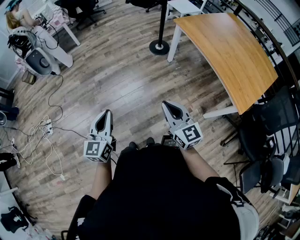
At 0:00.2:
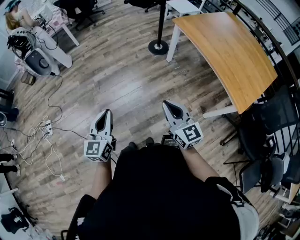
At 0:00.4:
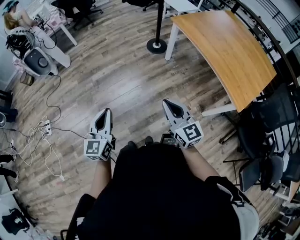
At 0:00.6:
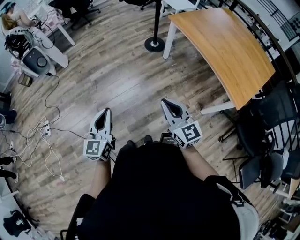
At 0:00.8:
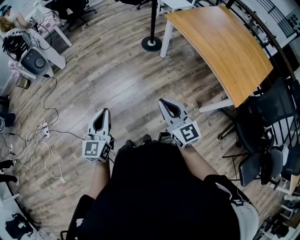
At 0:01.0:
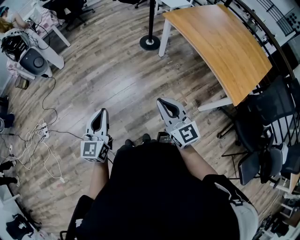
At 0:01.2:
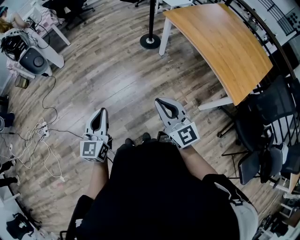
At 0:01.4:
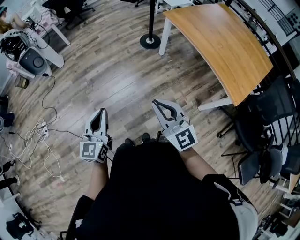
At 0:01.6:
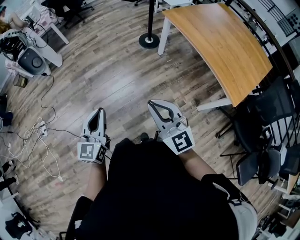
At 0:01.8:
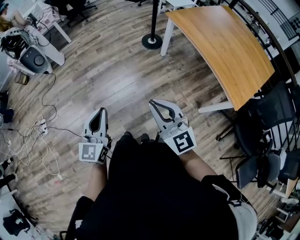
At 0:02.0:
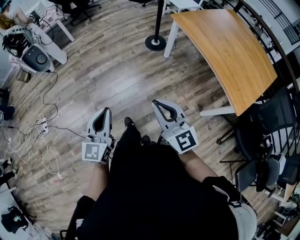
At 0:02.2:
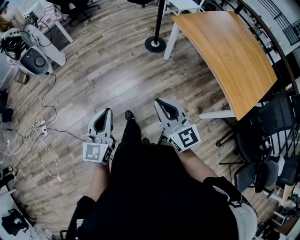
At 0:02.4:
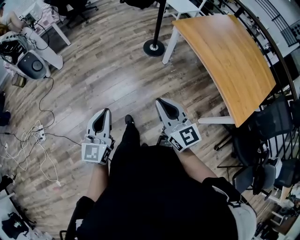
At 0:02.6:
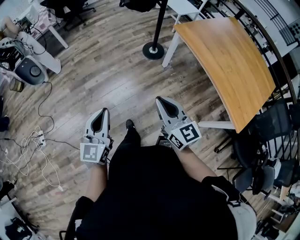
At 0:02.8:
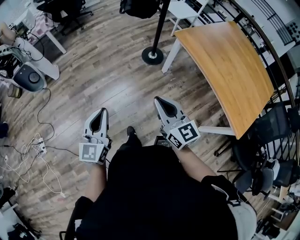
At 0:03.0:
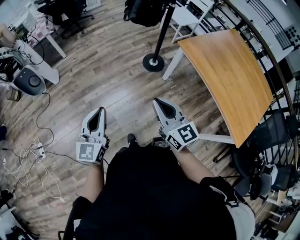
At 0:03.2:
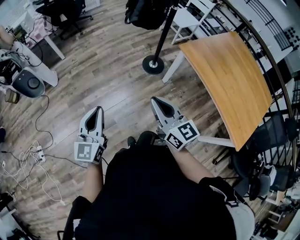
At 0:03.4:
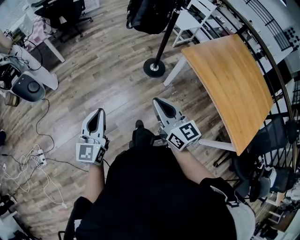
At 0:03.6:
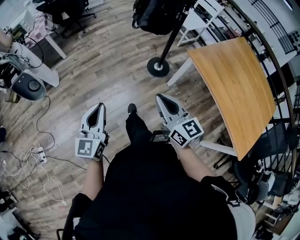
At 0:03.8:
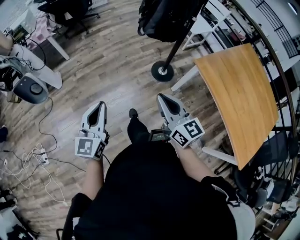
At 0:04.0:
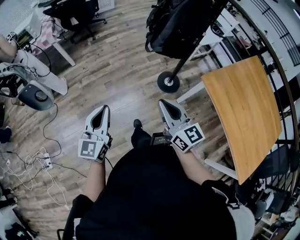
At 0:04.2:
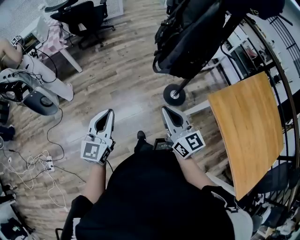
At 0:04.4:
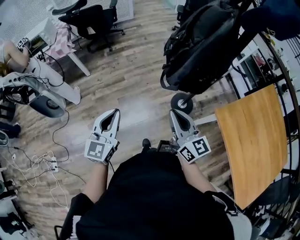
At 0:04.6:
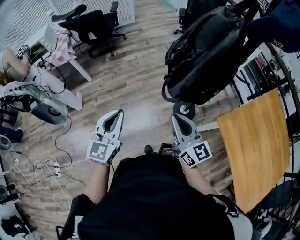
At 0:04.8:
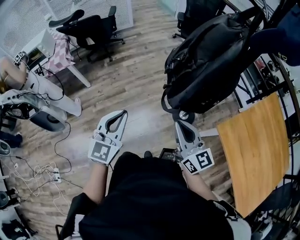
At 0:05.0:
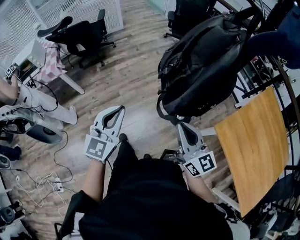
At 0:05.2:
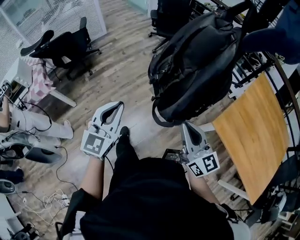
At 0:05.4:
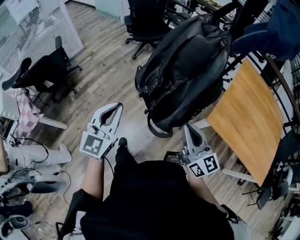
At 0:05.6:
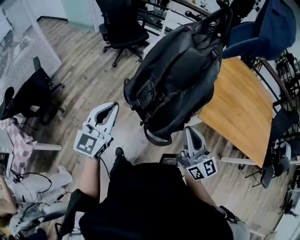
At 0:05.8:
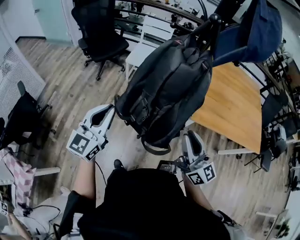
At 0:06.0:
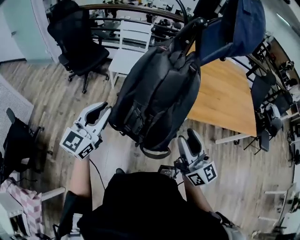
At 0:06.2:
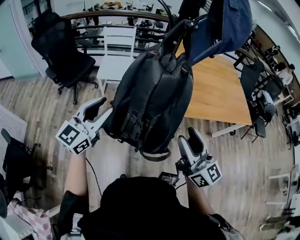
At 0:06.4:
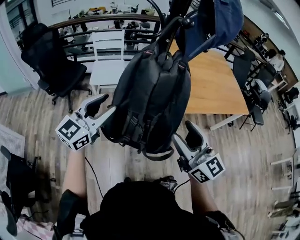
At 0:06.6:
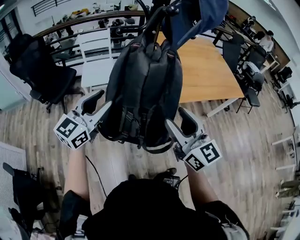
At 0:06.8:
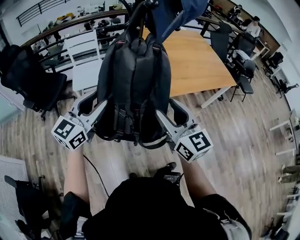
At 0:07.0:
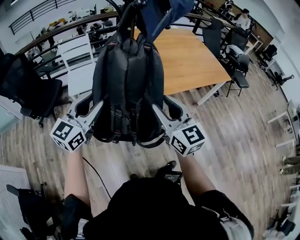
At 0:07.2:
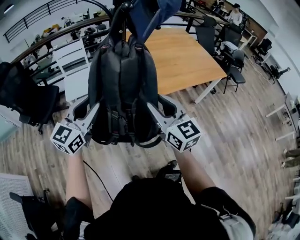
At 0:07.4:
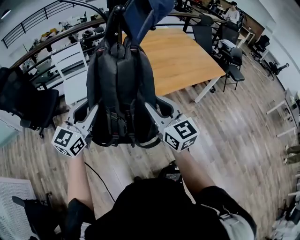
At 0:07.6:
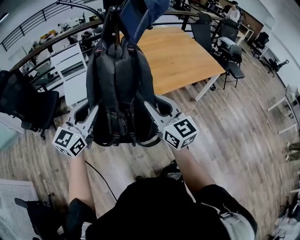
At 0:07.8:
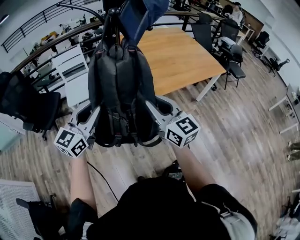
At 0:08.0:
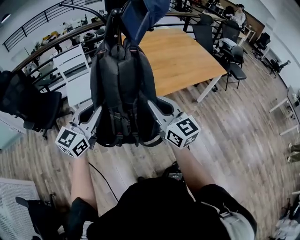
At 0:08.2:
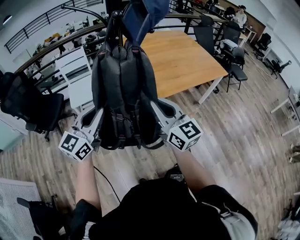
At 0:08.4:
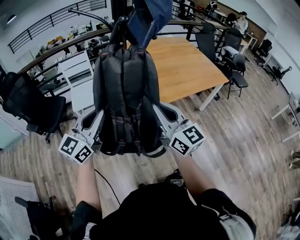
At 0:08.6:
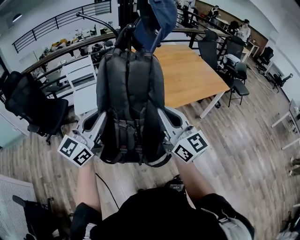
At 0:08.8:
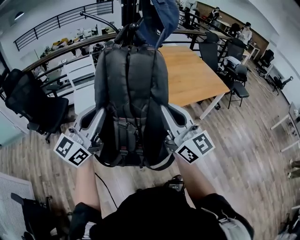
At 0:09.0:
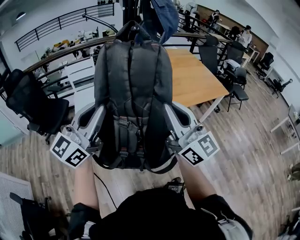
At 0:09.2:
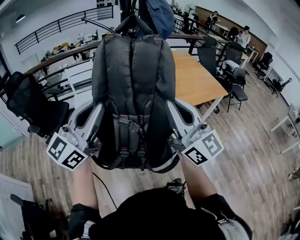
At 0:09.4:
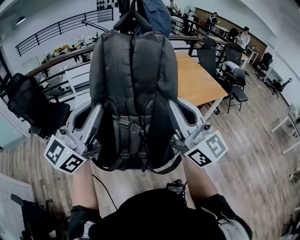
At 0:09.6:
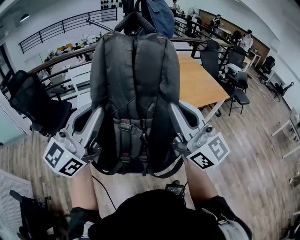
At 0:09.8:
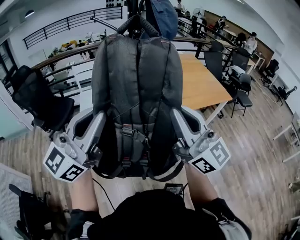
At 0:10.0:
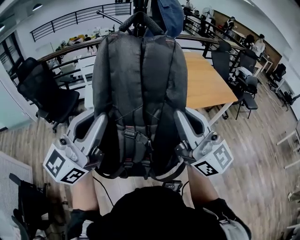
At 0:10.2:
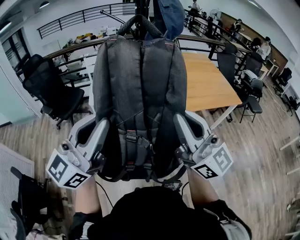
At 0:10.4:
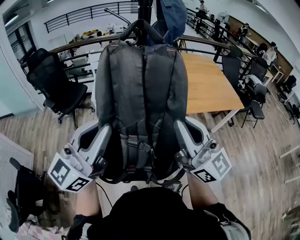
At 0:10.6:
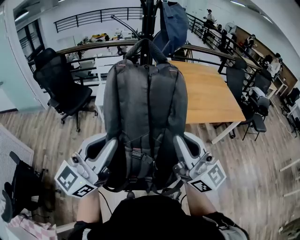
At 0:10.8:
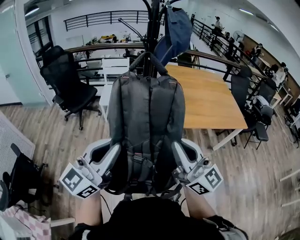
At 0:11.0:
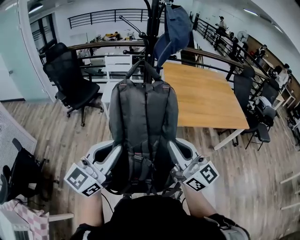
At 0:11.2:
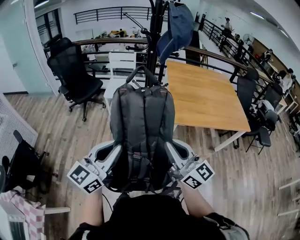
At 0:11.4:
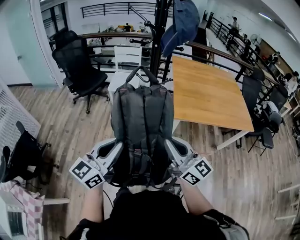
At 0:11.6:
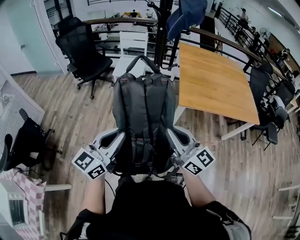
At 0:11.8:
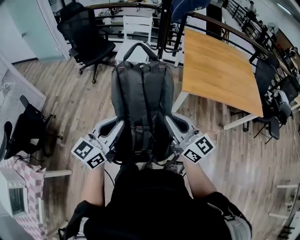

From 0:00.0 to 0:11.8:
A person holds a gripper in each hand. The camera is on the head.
From 0:00.0 to 0:01.4: The right gripper goes approximately 5 cm upward.
From 0:01.4 to 0:03.0: Both grippers move forward, about 30 cm.
From 0:03.0 to 0:04.4: The grippers both shift forward by roughly 40 cm.
From 0:04.4 to 0:06.0: The right gripper ends up some 20 cm from where it was, turns by about 60 degrees, and opens its fingers; the left gripper shifts by some 50 cm, and rotates approximately 70 degrees.
From 0:06.0 to 0:07.4: The right gripper ends up about 5 cm from where it was, and rotates roughly 30 degrees. The left gripper shifts by roughly 10 cm, and rotates roughly 30 degrees.
From 0:07.4 to 0:08.8: The left gripper moves upward and backward, about 10 cm, and closes up. The right gripper is displaced upward by about 10 cm, rotates approximately 20 degrees, and closes up.
From 0:08.8 to 0:10.4: Both grippers travel together backward, upward and to the right, about 15 cm.
From 0:10.4 to 0:11.8: The grippers both shift downward by some 20 cm. The left gripper swivels about 30 degrees, while the right gripper changes its angle by some 30 degrees.

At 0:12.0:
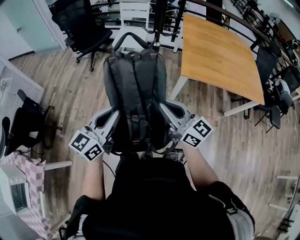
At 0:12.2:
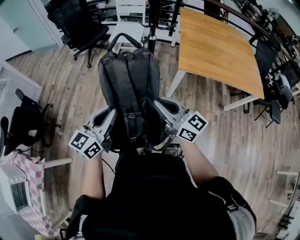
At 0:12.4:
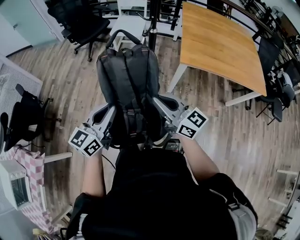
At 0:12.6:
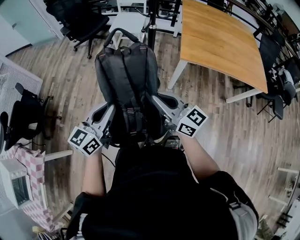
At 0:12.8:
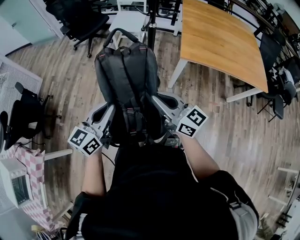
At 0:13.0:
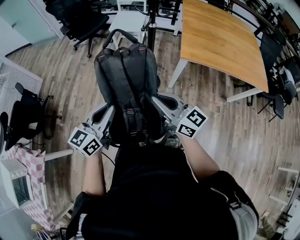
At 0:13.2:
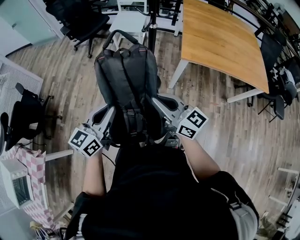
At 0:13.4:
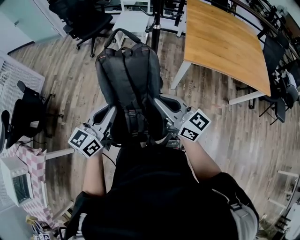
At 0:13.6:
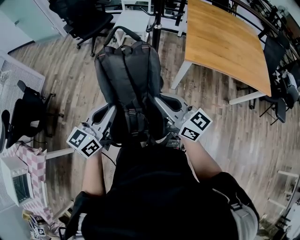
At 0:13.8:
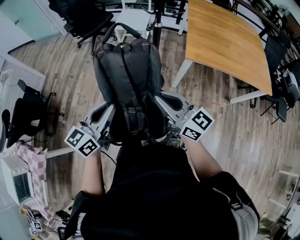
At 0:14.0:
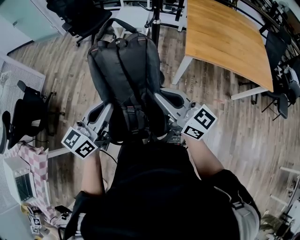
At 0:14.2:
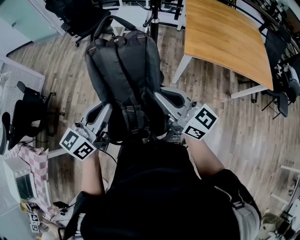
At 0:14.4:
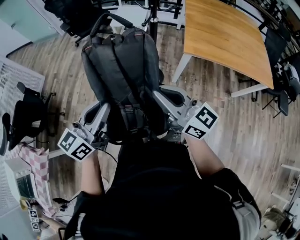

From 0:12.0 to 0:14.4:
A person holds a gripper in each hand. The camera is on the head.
From 0:12.0 to 0:13.2: The grippers move only a little.
From 0:13.2 to 0:14.4: Both grippers travel together upward, some 5 cm.

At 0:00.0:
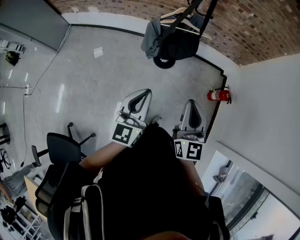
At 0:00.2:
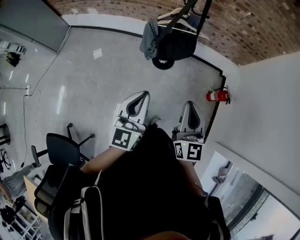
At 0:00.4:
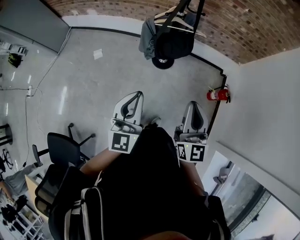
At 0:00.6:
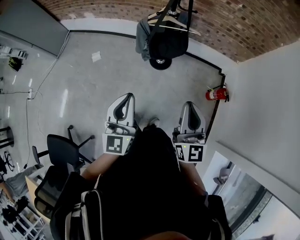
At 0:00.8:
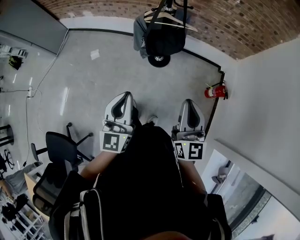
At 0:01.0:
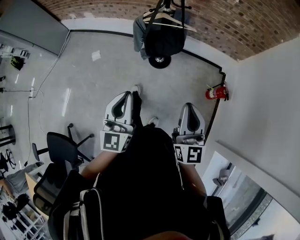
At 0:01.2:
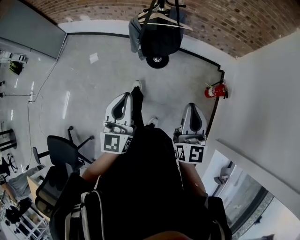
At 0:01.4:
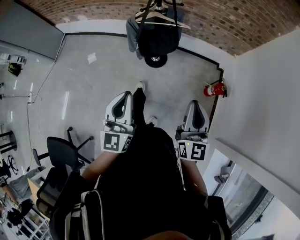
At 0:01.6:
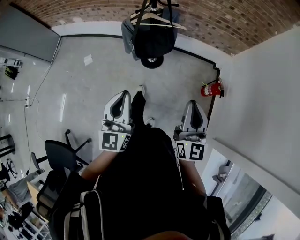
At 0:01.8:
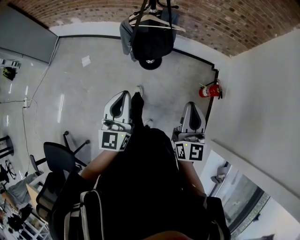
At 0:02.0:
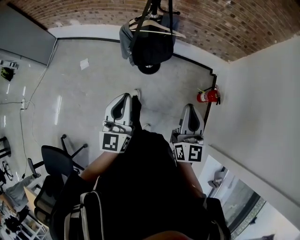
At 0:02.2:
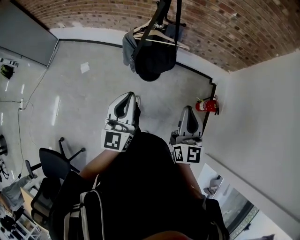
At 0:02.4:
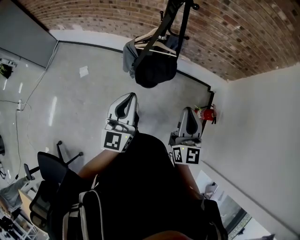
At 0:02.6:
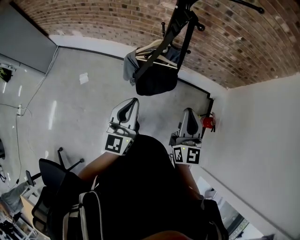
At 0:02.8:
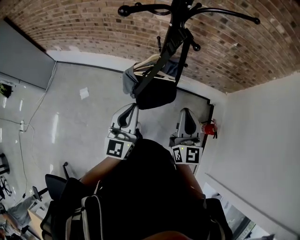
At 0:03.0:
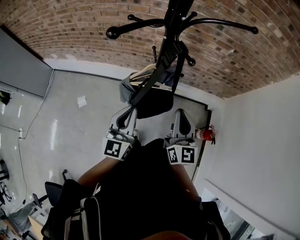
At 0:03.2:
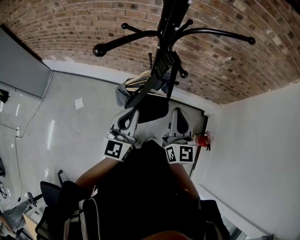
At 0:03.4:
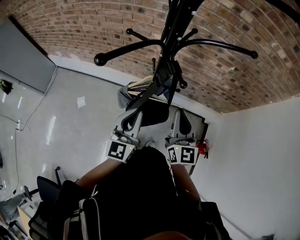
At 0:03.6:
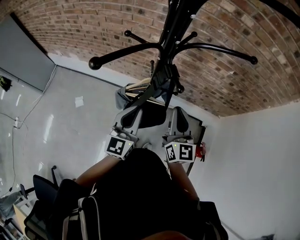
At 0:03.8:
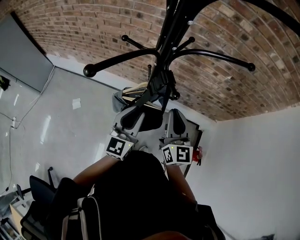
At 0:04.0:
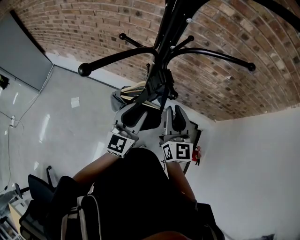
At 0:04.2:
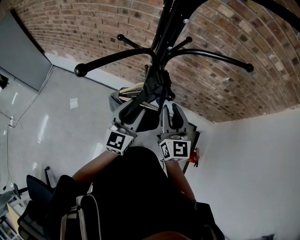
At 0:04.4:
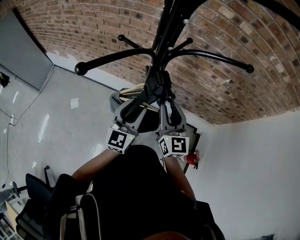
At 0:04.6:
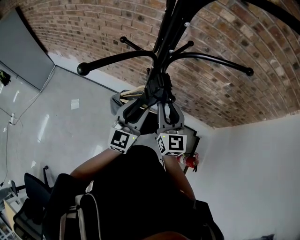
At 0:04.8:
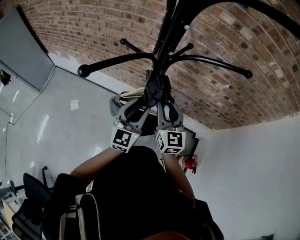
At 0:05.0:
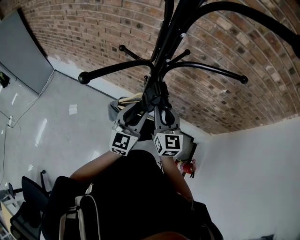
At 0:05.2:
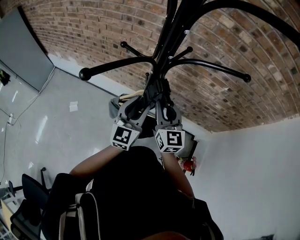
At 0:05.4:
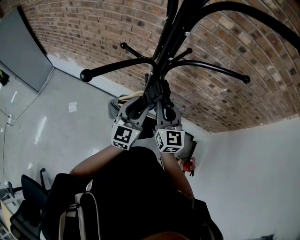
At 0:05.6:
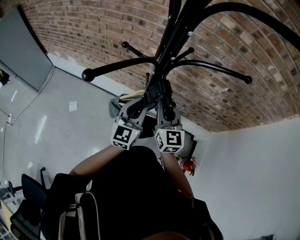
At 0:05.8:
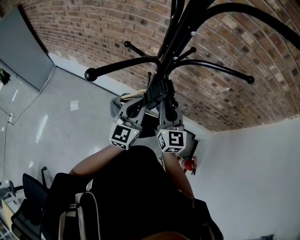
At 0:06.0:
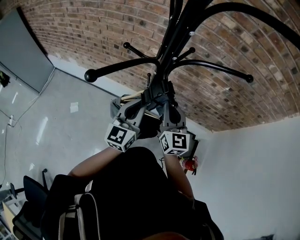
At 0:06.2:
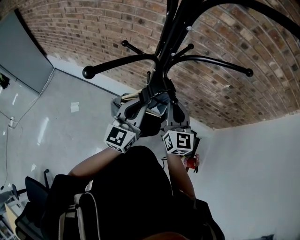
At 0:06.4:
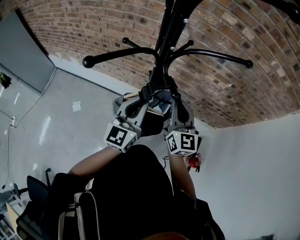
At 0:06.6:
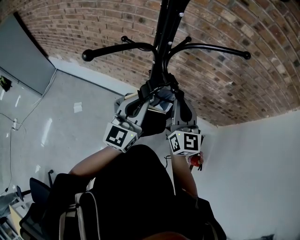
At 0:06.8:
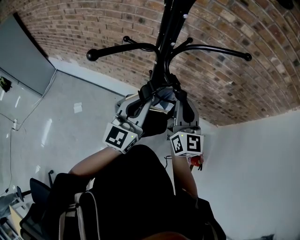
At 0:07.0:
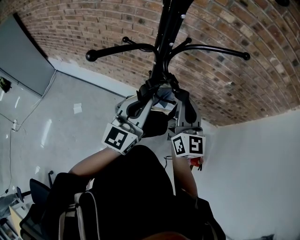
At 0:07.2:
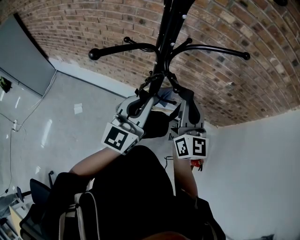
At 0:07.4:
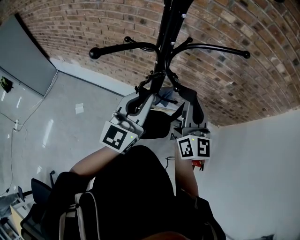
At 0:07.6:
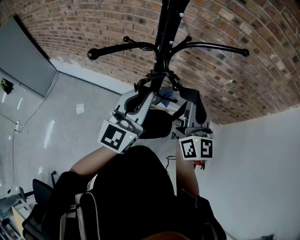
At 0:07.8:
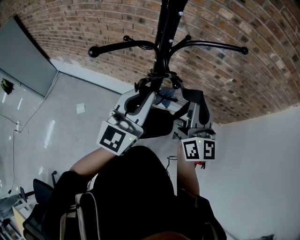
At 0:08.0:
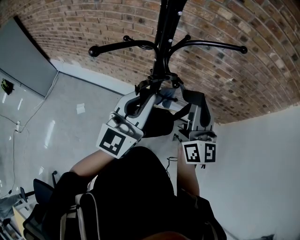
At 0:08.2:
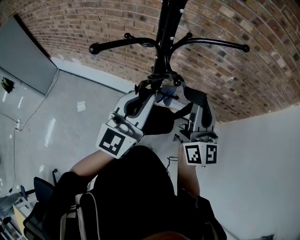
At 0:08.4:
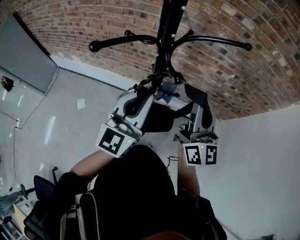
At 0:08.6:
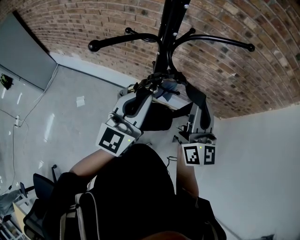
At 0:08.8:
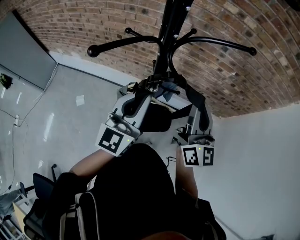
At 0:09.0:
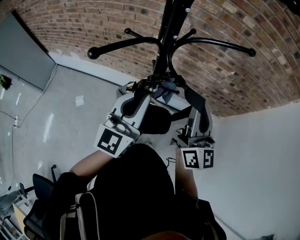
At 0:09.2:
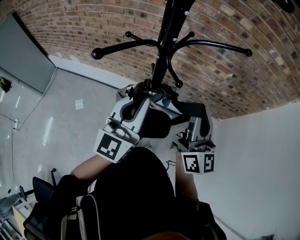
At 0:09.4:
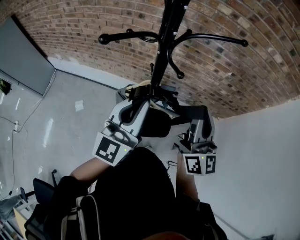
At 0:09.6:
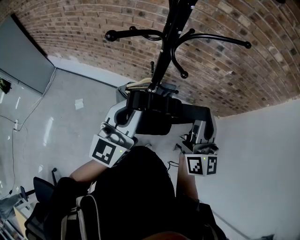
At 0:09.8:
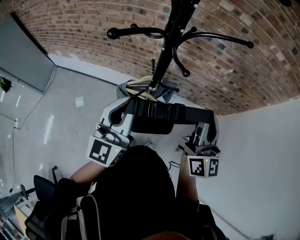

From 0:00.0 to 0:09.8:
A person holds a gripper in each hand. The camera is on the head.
From 0:00.0 to 0:01.4: The left gripper goes approximately 10 cm to the right, while the right gripper shifts approximately 15 cm to the right.
From 0:01.4 to 0:02.8: The grippers both shift forward by about 30 cm.
From 0:02.8 to 0:04.2: The right gripper is displaced forward by about 20 cm, and opens. Meanwhile the left gripper heads forward and to the right, covering roughly 20 cm, and opens.
From 0:04.2 to 0:05.6: The right gripper heads forward, covering approximately 5 cm.
From 0:05.6 to 0:07.0: Both grippers move upward, roughly 10 cm.
From 0:07.0 to 0:08.4: Both grippers travel together upward, some 5 cm.
From 0:08.4 to 0:09.8: Both grippers travel together backward, some 5 cm.
